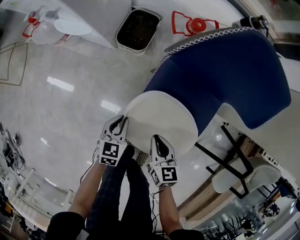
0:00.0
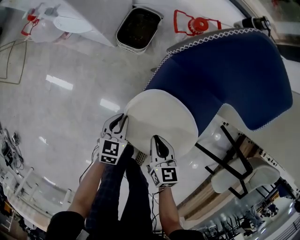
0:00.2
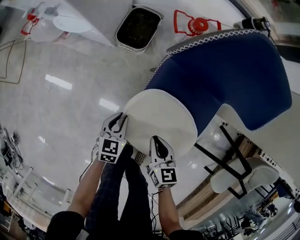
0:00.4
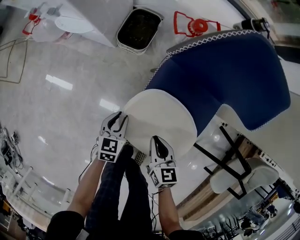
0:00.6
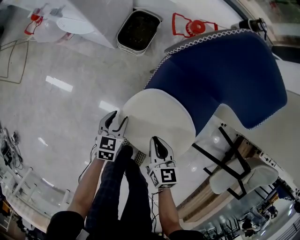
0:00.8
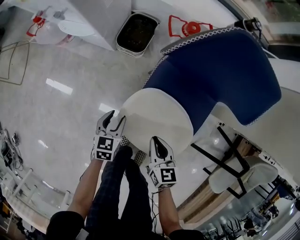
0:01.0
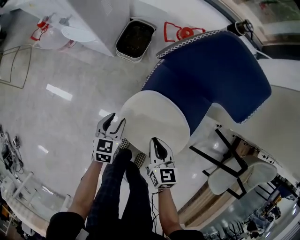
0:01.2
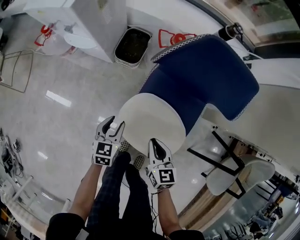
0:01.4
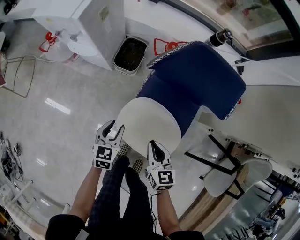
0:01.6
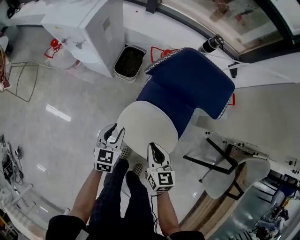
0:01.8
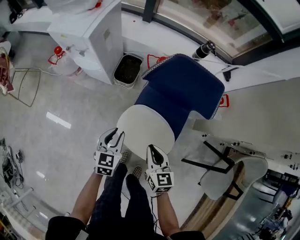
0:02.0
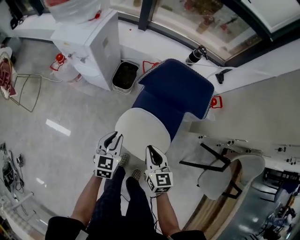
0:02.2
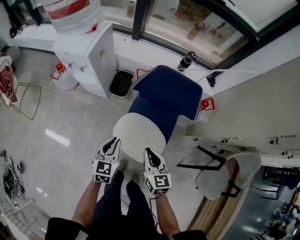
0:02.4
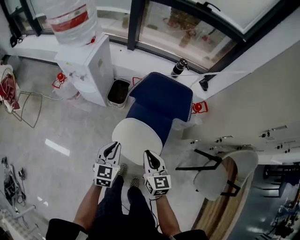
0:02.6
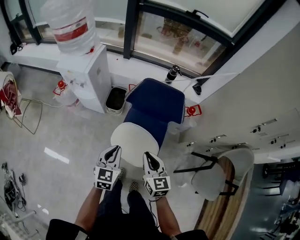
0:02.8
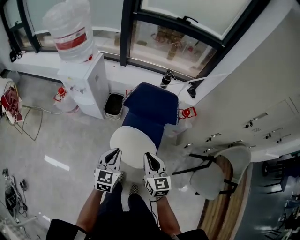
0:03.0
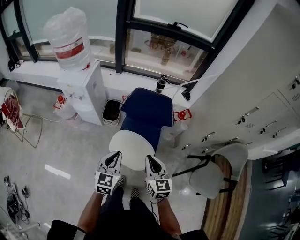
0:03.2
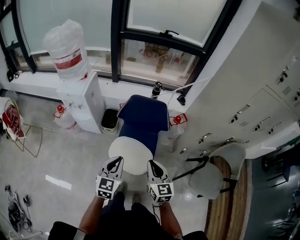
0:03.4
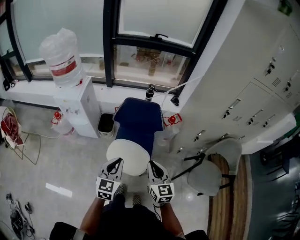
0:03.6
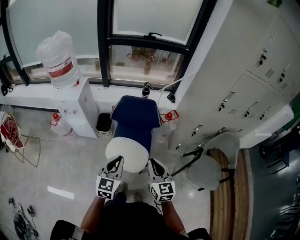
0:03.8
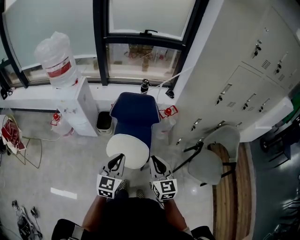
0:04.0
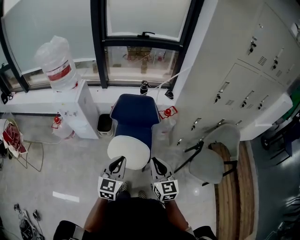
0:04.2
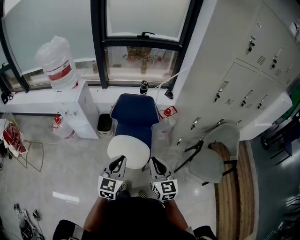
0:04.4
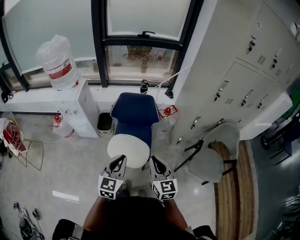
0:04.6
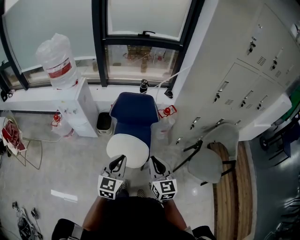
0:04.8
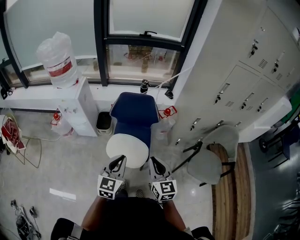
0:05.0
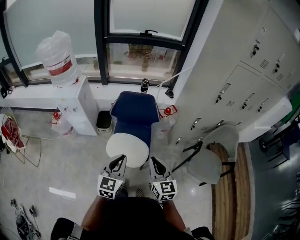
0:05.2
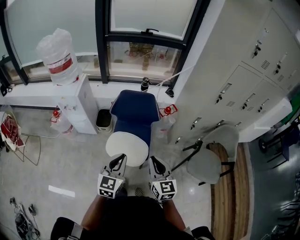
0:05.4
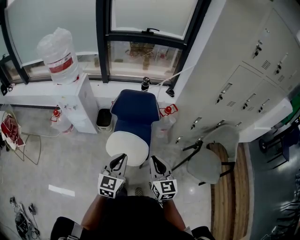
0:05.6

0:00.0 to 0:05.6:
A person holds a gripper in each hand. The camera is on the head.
0:00.0 to 0:01.4: Both grippers travel together upward, about 10 cm. The left gripper opens up.
0:01.4 to 0:02.8: Both grippers move upward, approximately 35 cm. The left gripper changes its angle by about 20 degrees, and closes.
0:02.8 to 0:04.2: Both grippers move backward, upward and to the right, some 25 cm.
0:04.2 to 0:05.6: Both grippers stay about where they are.

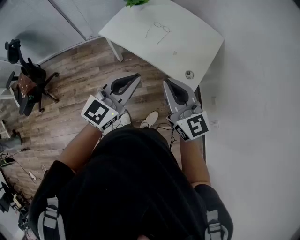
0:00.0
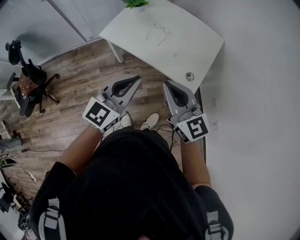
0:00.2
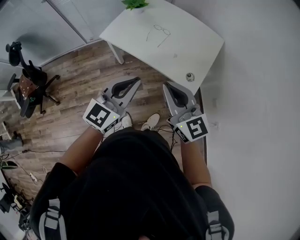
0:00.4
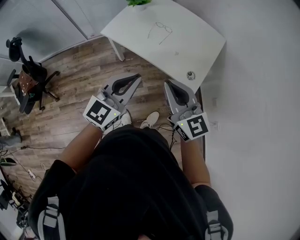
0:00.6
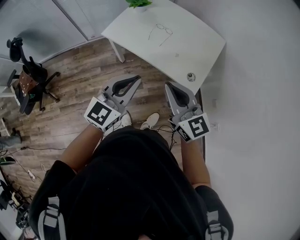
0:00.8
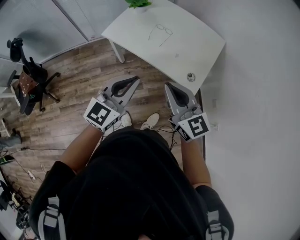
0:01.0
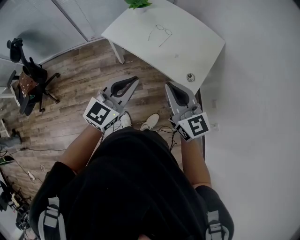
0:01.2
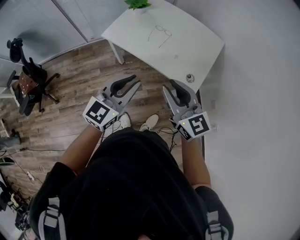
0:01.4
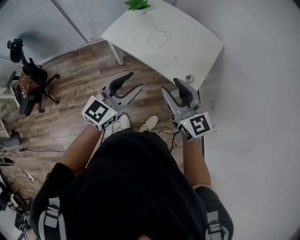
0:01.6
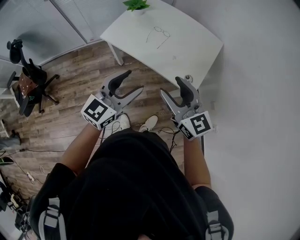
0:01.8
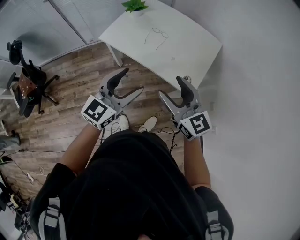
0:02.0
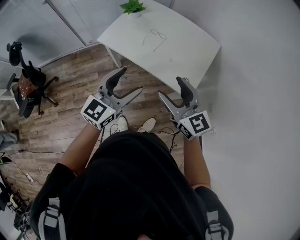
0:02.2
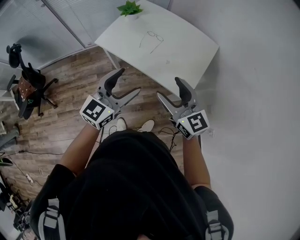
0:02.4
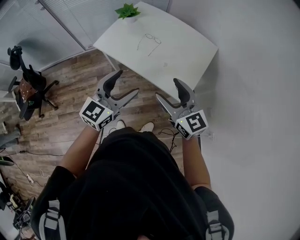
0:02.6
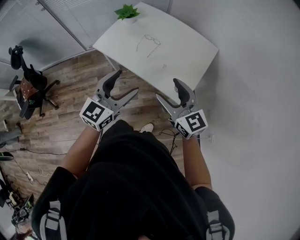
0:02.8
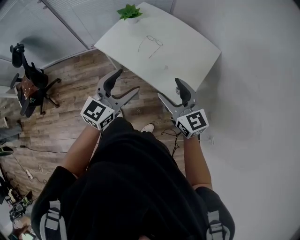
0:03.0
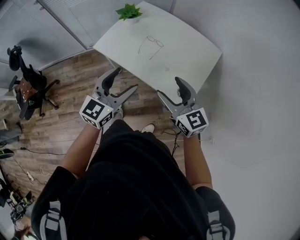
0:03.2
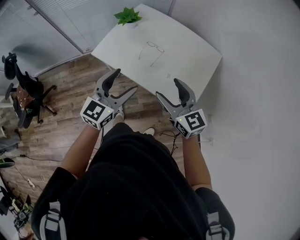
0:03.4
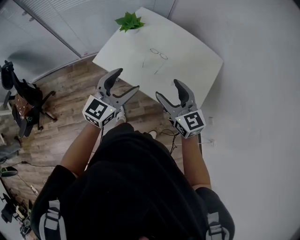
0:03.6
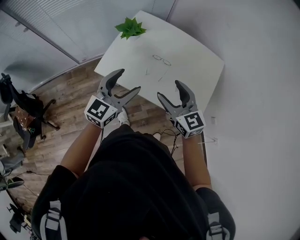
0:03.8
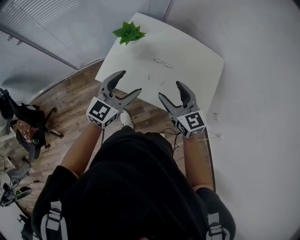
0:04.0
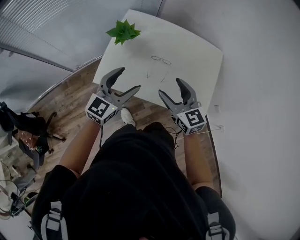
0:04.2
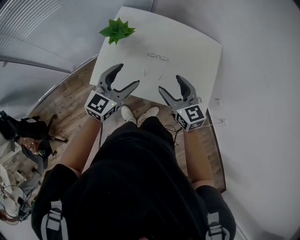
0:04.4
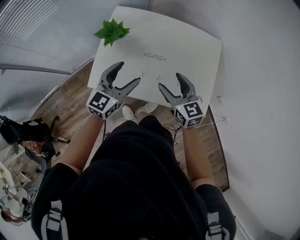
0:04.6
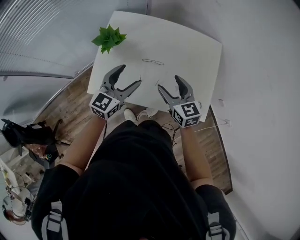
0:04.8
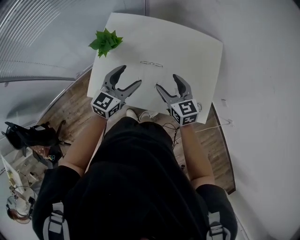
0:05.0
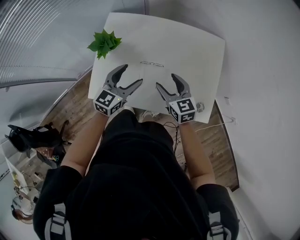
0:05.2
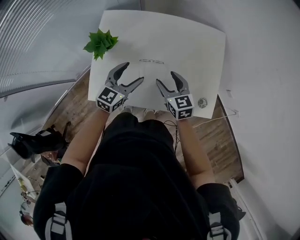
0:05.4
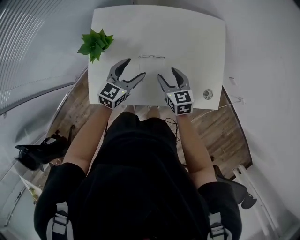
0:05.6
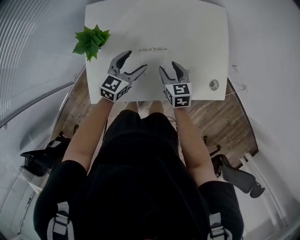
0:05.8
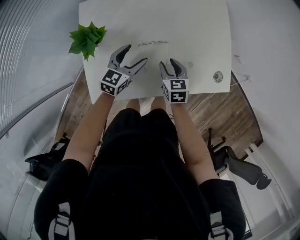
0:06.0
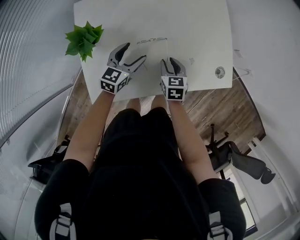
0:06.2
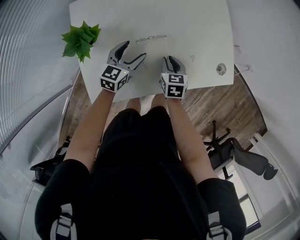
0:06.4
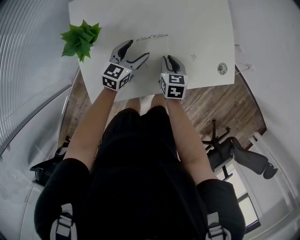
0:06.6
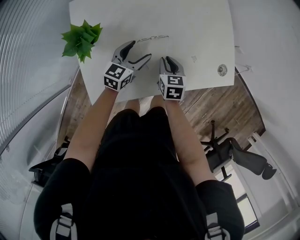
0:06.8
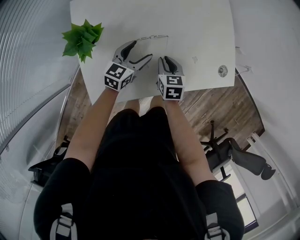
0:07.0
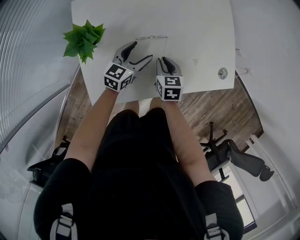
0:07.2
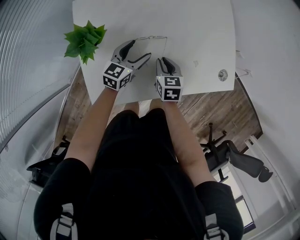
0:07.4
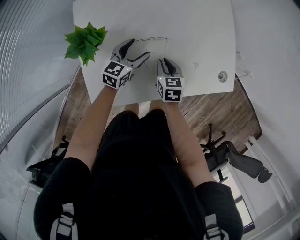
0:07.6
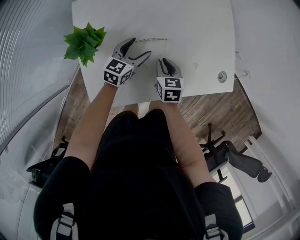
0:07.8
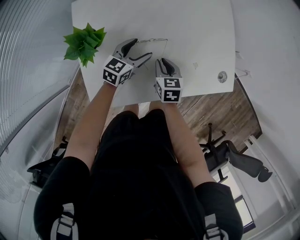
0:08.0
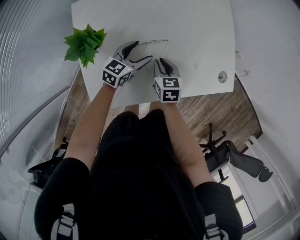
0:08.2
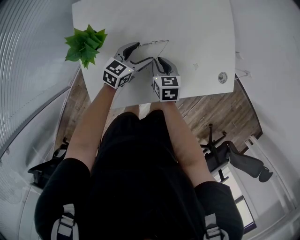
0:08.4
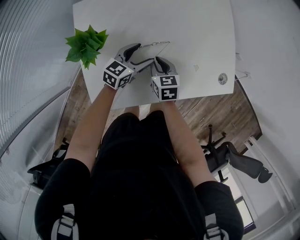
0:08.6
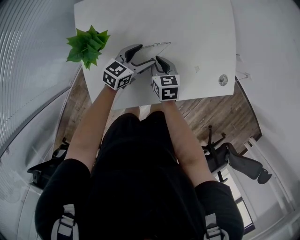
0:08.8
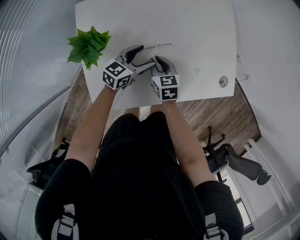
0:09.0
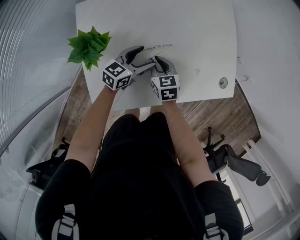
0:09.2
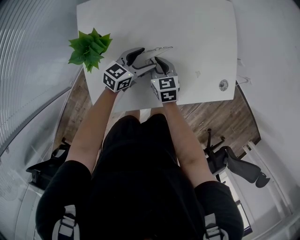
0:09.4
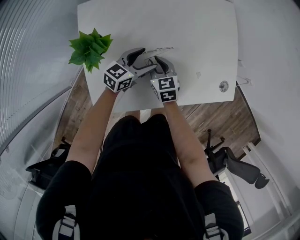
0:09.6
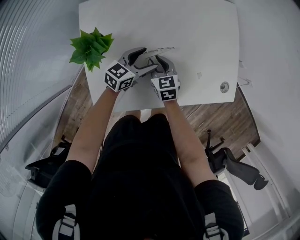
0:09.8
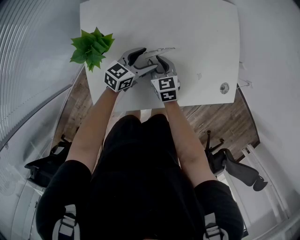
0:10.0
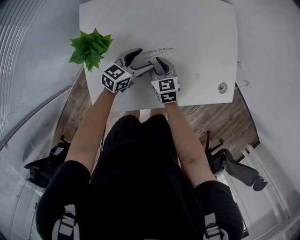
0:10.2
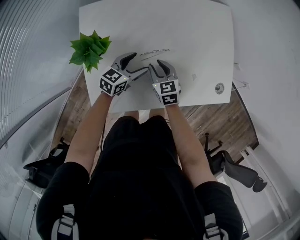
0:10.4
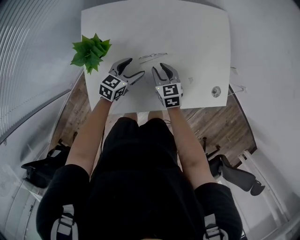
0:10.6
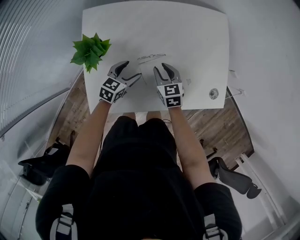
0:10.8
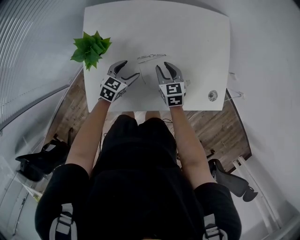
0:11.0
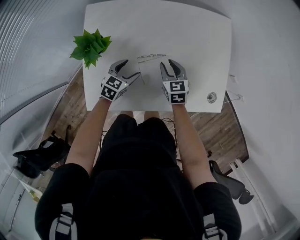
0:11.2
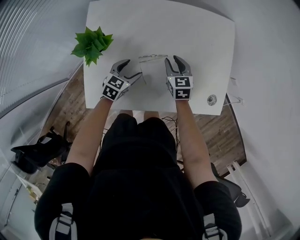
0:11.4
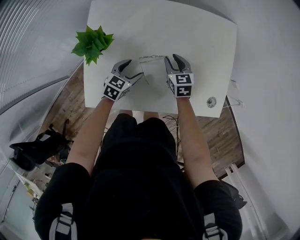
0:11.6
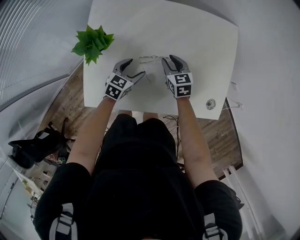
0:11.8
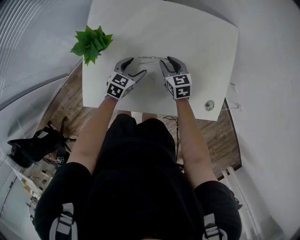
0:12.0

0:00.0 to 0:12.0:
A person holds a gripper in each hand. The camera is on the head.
0:00.0 to 0:01.6: The right gripper opens its fingers, while the left gripper opens its fingers.
0:01.6 to 0:03.0: Both grippers move to the right and forward, some 10 cm. The left gripper opens its fingers, while the right gripper opens.
0:03.0 to 0:04.4: Both grippers move forward and to the left, some 30 cm. The left gripper turns by roughly 20 degrees. The right gripper swivels roughly 30 degrees.
0:04.4 to 0:06.0: Both grippers move downward, approximately 25 cm. The left gripper turns by about 30 degrees. The right gripper turns by roughly 40 degrees, and closes.
0:06.0 to 0:07.6: The left gripper goes roughly 5 cm downward.
0:07.6 to 0:09.0: The right gripper is displaced to the left by some 5 cm.
0:09.0 to 0:10.4: The grippers stay close to where they were, moving slightly.
0:10.4 to 0:12.0: The right gripper heads forward, covering roughly 5 cm, while the left gripper turns by approximately 20 degrees.

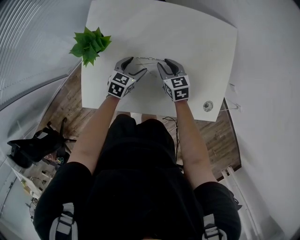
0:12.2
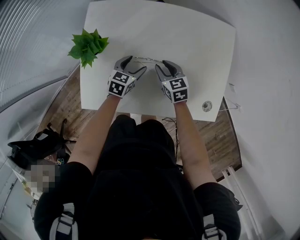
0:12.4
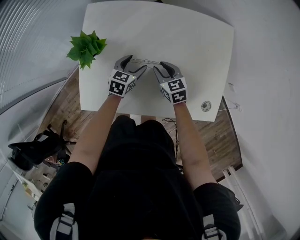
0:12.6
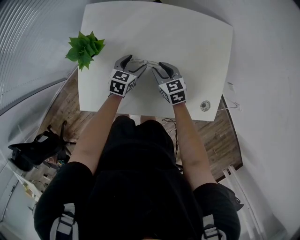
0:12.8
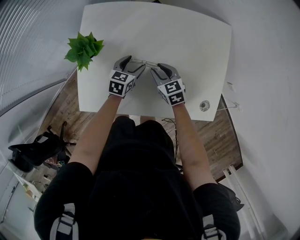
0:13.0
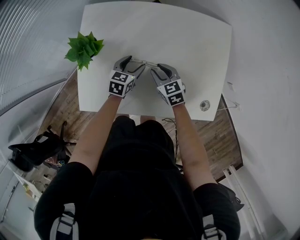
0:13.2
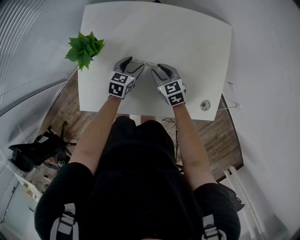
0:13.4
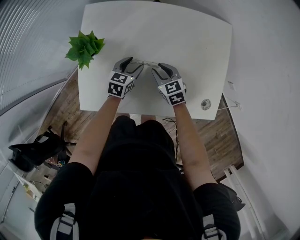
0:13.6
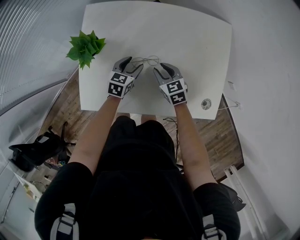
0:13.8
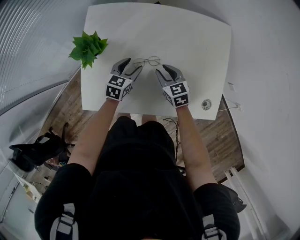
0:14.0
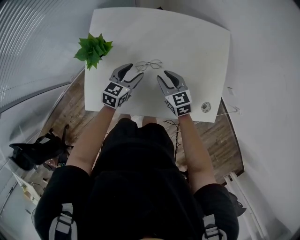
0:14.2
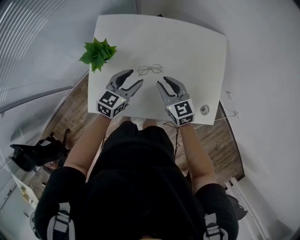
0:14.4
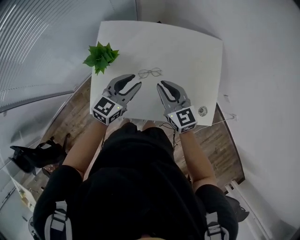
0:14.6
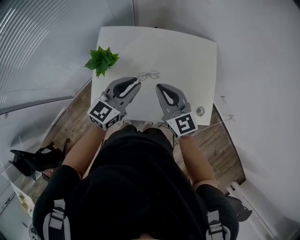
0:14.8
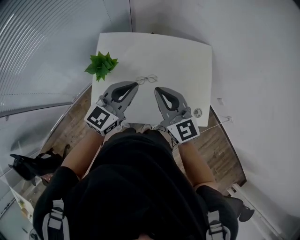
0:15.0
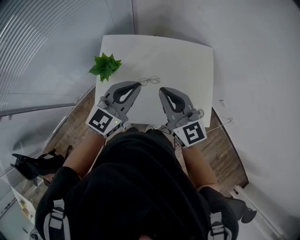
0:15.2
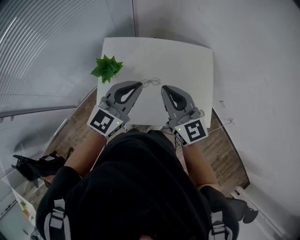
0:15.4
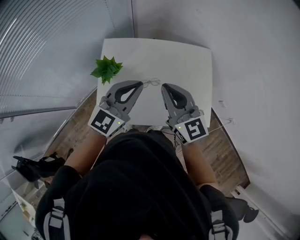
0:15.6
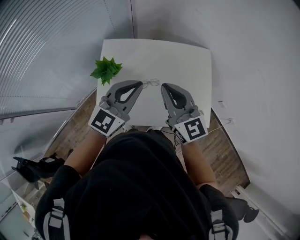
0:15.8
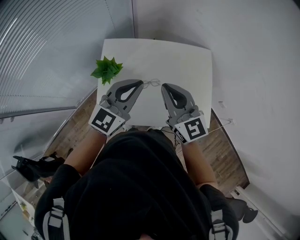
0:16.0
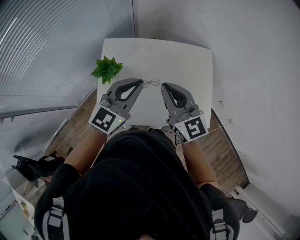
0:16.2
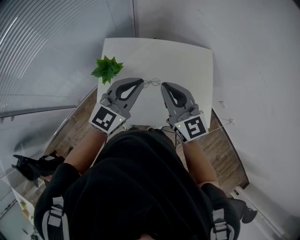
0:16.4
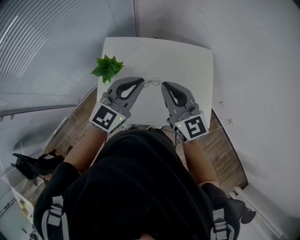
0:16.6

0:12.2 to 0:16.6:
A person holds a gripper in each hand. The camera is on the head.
0:12.2 to 0:13.6: The grippers make only small movements.
0:13.6 to 0:15.2: The two grippers go approximately 40 cm upward. The right gripper tilts its fingers roughly 40 degrees upward, and closes up. The left gripper tips its fingers upward by about 40 degrees, and closes its fingers.
0:15.2 to 0:16.6: The grippers make only small movements.

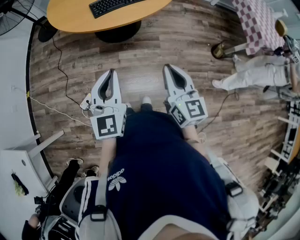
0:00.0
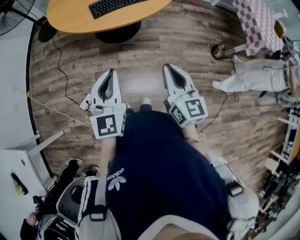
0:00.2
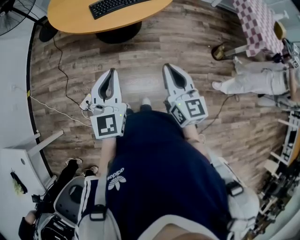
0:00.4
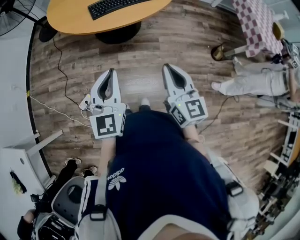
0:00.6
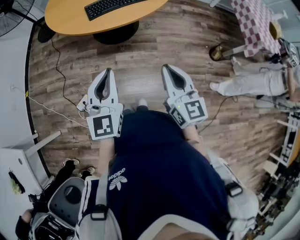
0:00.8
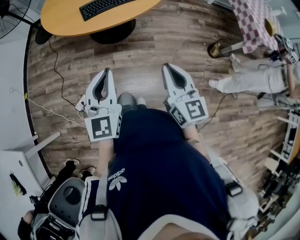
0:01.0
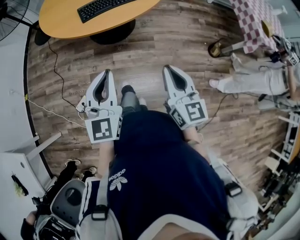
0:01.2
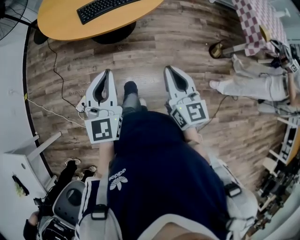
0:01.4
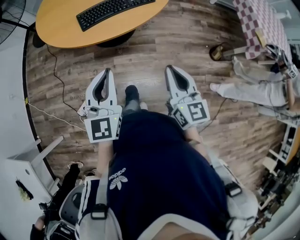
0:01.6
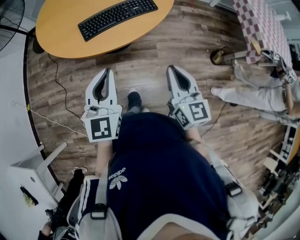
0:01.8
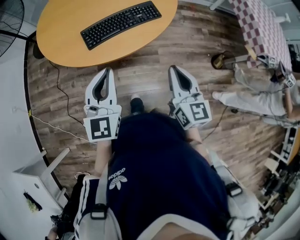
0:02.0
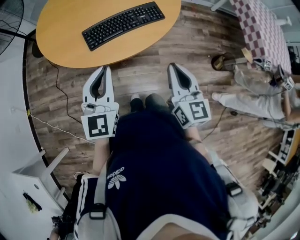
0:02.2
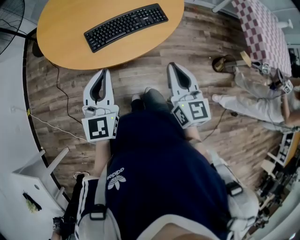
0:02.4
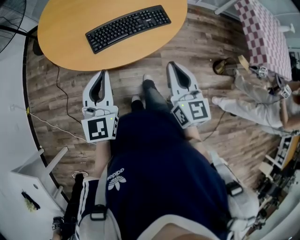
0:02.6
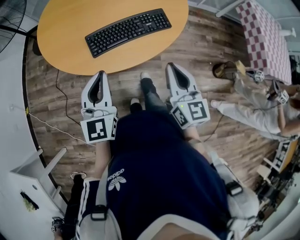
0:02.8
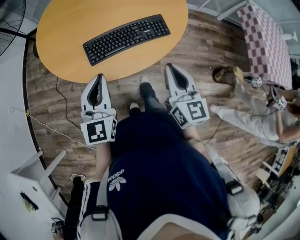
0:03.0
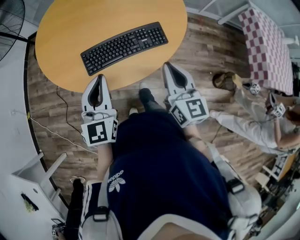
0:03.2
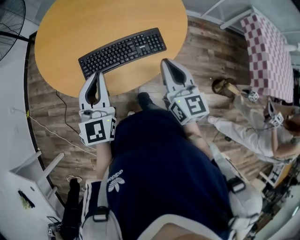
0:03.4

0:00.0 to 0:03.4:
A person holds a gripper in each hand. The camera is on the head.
0:00.0 to 0:01.6: The right gripper shifts approximately 10 cm forward and to the right, while the left gripper is displaced forward by roughly 10 cm.
0:01.6 to 0:03.4: The two grippers go about 35 cm forward.
